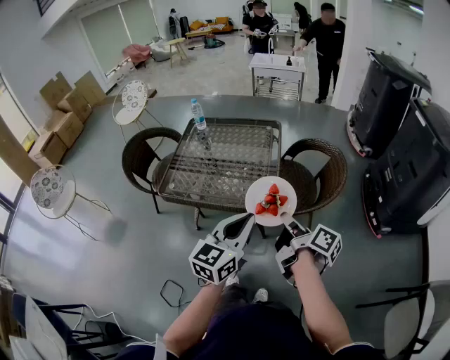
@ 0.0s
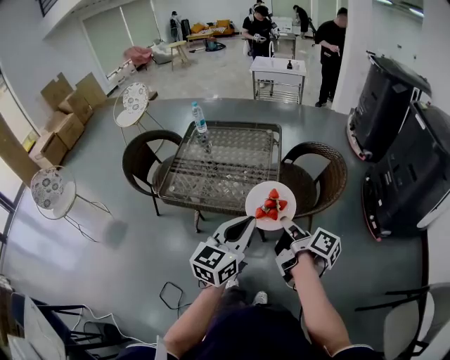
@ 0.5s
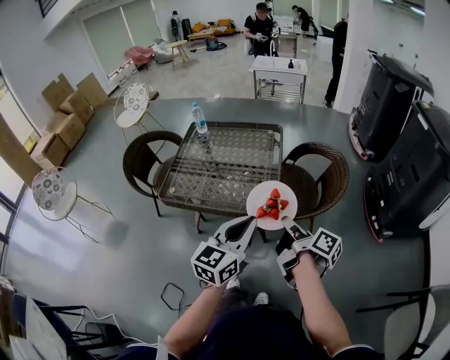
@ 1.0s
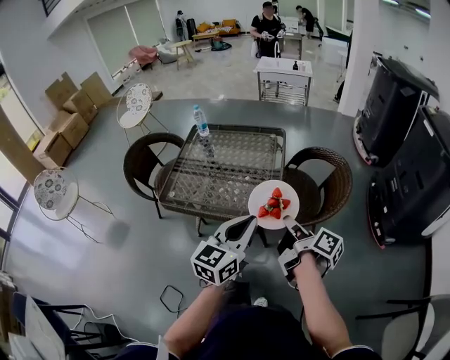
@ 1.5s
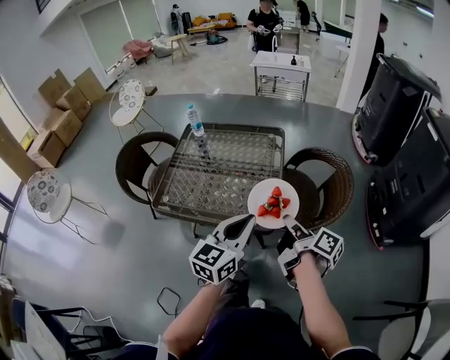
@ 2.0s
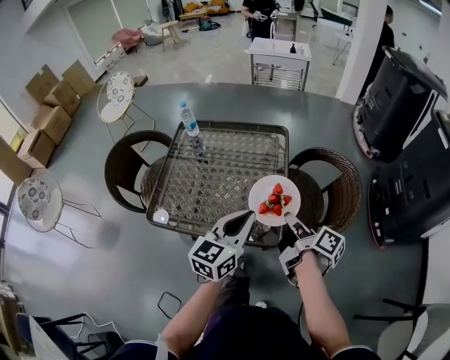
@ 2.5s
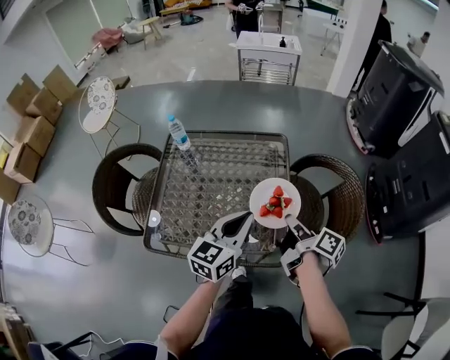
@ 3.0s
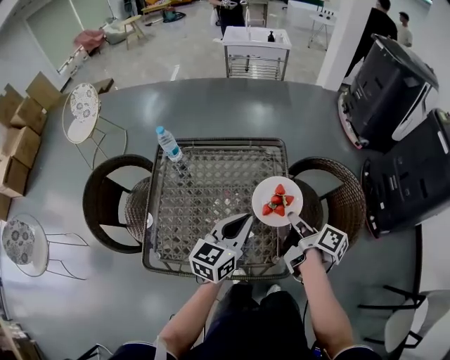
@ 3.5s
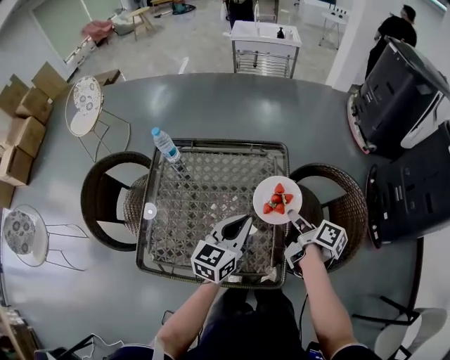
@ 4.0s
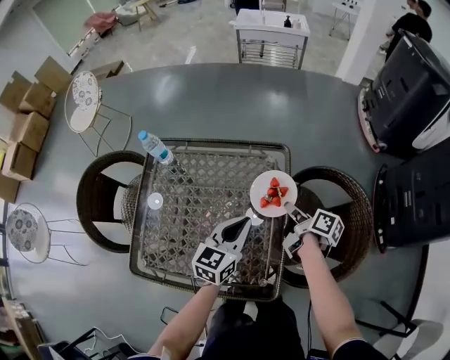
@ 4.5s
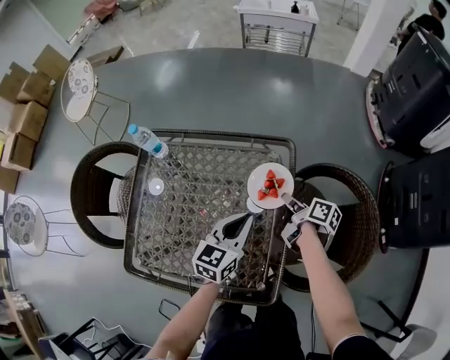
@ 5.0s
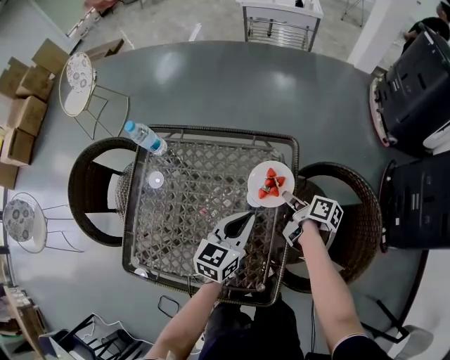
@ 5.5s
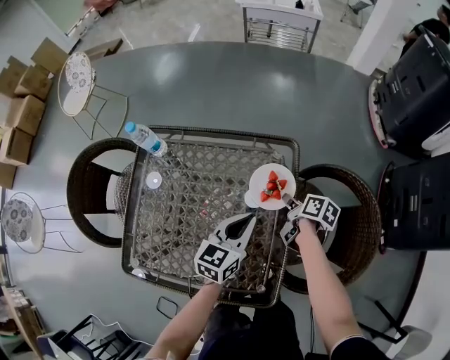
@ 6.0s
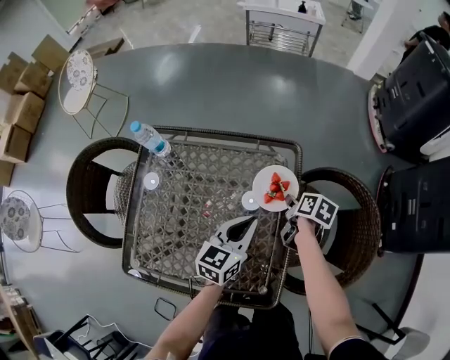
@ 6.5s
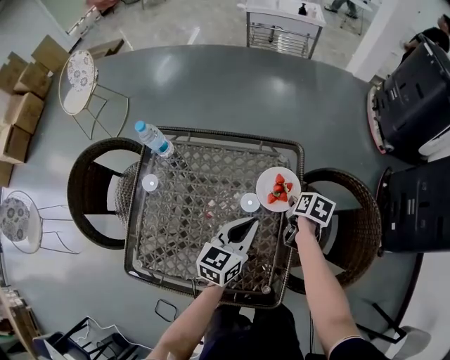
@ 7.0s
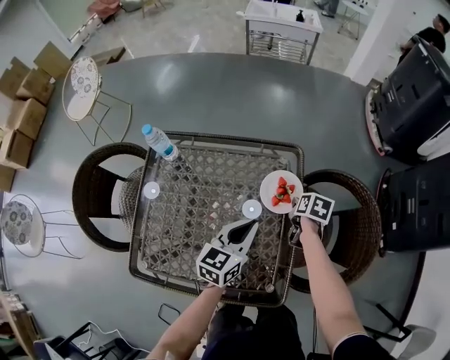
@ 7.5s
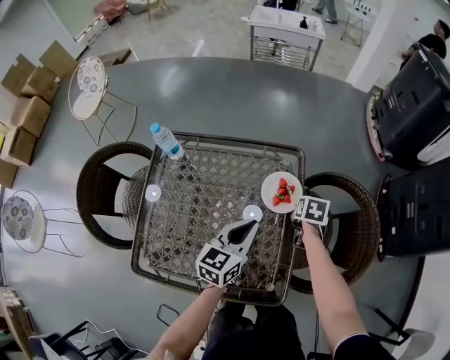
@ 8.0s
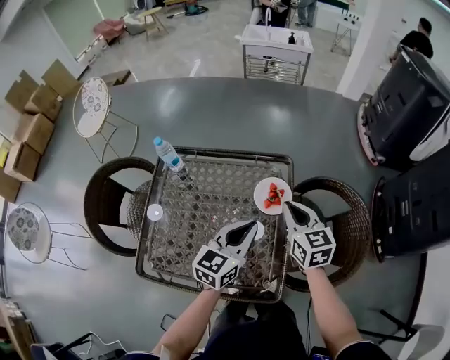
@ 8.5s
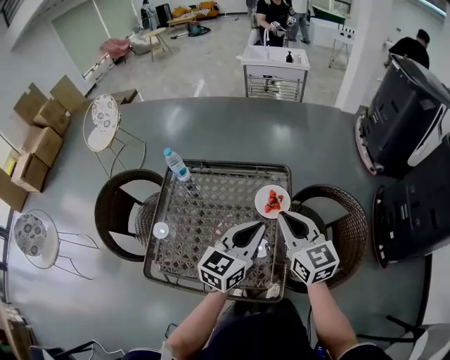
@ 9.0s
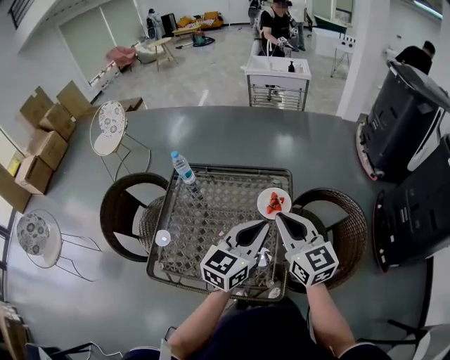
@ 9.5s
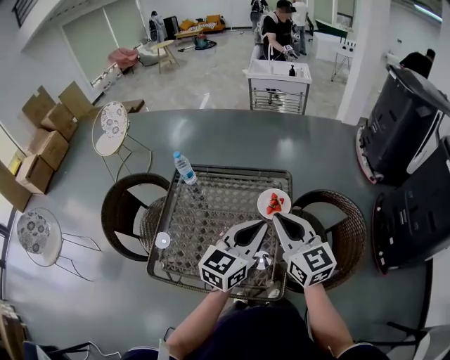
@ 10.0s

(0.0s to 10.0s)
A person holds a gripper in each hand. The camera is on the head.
0.0s - 2.0s: The grippers both shift forward by roughly 10 cm.
2.0s - 4.0s: The grippers both shift forward by roughly 30 cm.
4.0s - 6.0s: The right gripper goes about 20 cm downward and forward, and swivels about 30 degrees, while the left gripper is displaced downward and forward by some 10 cm.
6.0s - 8.0s: The left gripper moves roughly 5 cm. Meanwhile the right gripper swivels approximately 40 degrees.
8.0s - 10.0s: The right gripper heads upward and backward, covering roughly 35 cm, and angles its fingers upward, by roughly 60 degrees. Meanwhile the left gripper is displaced upward by approximately 20 cm.

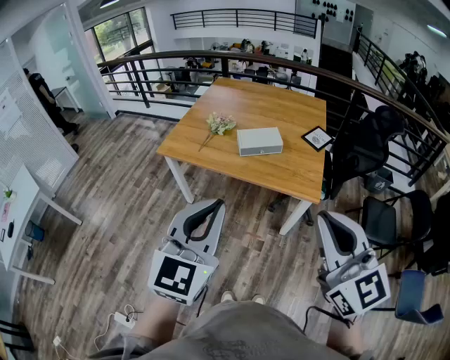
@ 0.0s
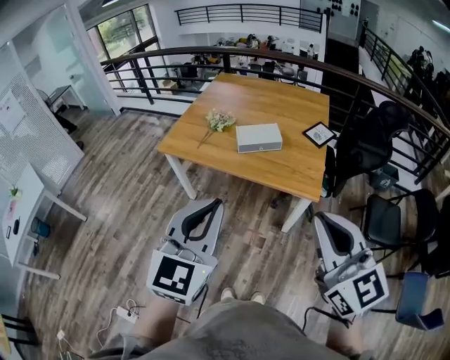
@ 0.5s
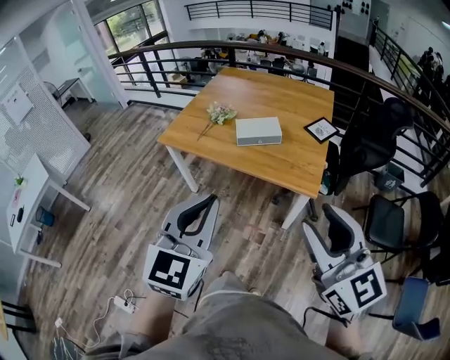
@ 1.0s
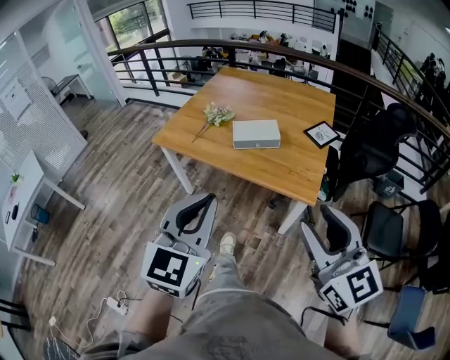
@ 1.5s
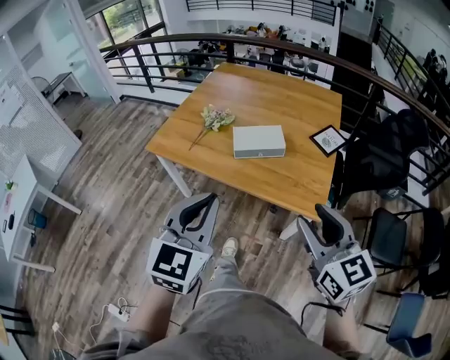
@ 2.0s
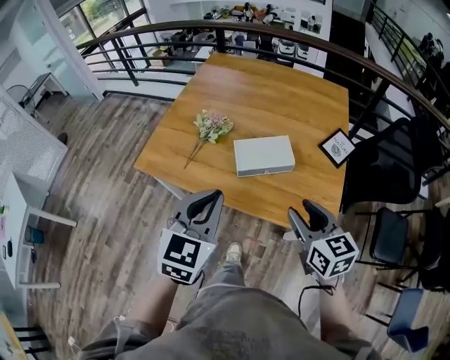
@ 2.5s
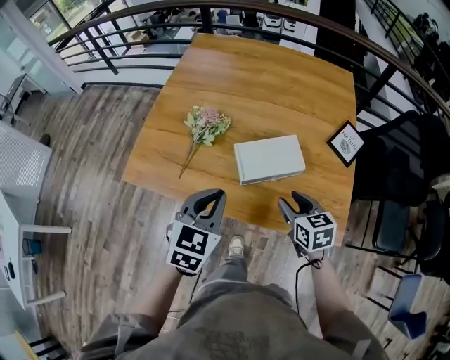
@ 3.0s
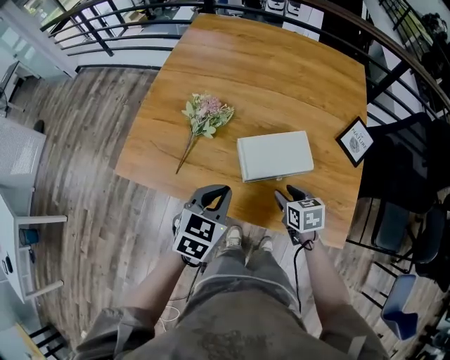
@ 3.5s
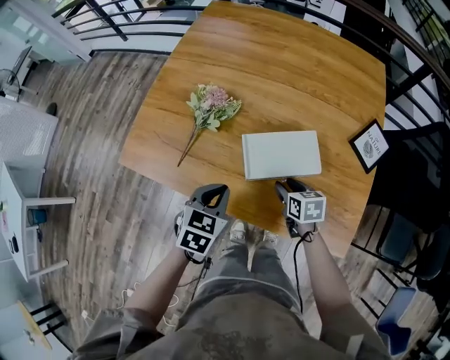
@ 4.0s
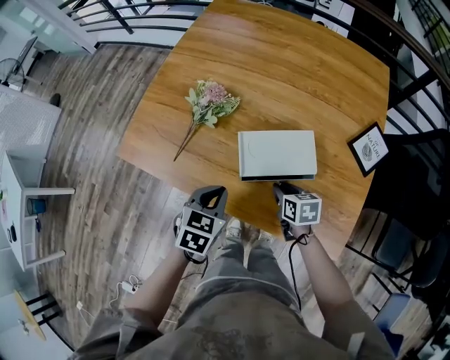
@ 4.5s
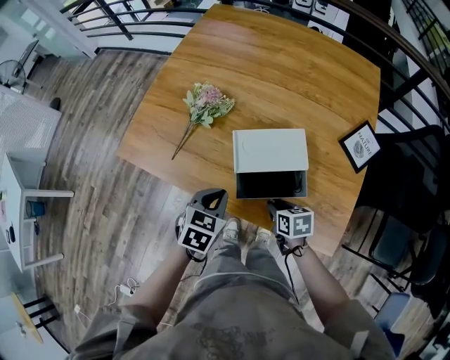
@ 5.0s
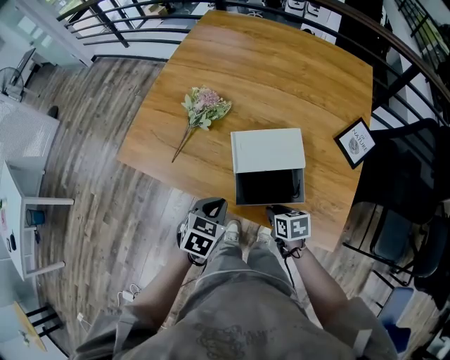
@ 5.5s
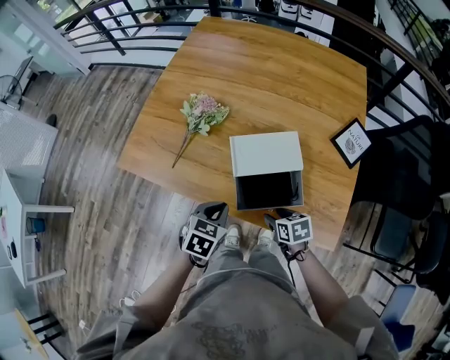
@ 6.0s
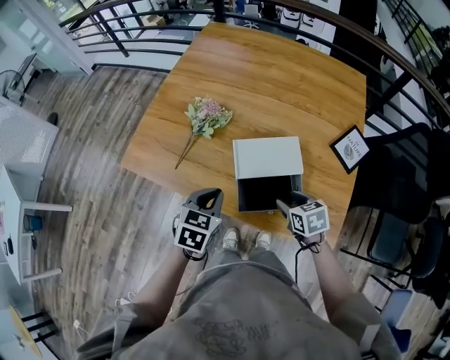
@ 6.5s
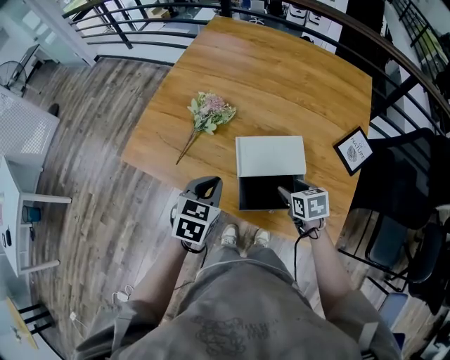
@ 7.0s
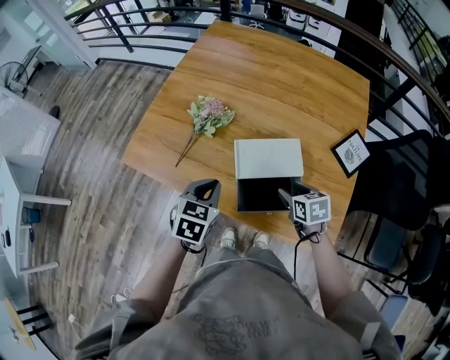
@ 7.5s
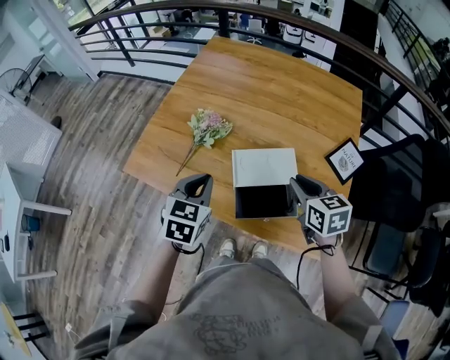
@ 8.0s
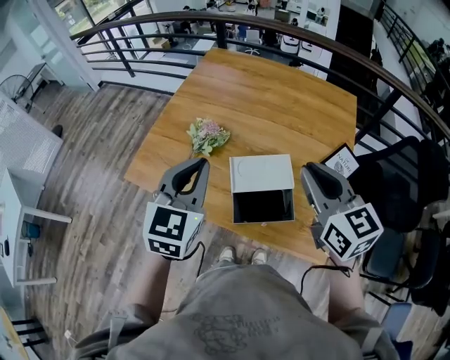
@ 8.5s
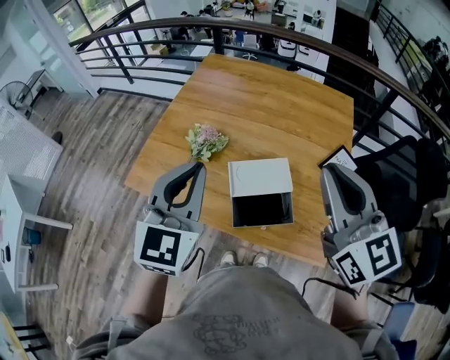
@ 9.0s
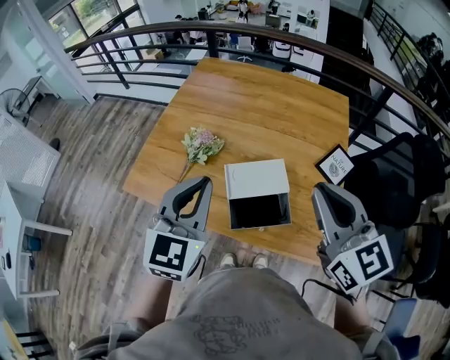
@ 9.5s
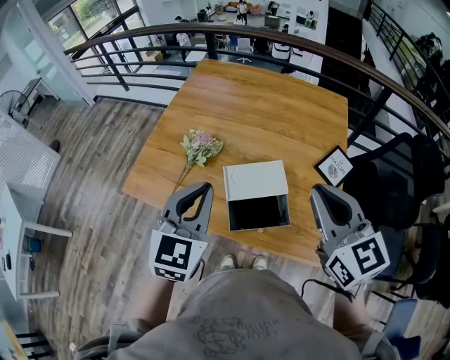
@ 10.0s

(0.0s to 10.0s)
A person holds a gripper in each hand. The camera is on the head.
0.0s - 2.0s: The left gripper moves forward and downward, roughly 15 cm. Meanwhile the right gripper is displaced forward, downward and to the right by some 25 cm, and opens its fingers.
2.0s - 4.0s: The left gripper is displaced forward and downward by roughly 40 cm, and angles its fingers downward, by approximately 40 degrees; the right gripper moves downward and forward, some 50 cm, and tips its fingers downward by roughly 40 degrees.
4.0s - 6.0s: The right gripper moves backward, about 10 cm, and closes and opens again; the left gripper shifts some 5 cm backward.
6.0s - 8.0s: The right gripper moves upward and forward, roughly 25 cm, swivels some 30 degrees, and closes its fingers, while the left gripper moves upward and forward, some 15 cm, and swivels approximately 20 degrees.
8.0s - 10.0s: Both grippers move upward, some 15 cm. The right gripper turns by about 30 degrees. The left gripper rotates about 20 degrees.

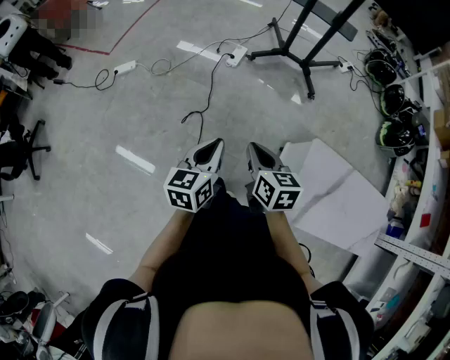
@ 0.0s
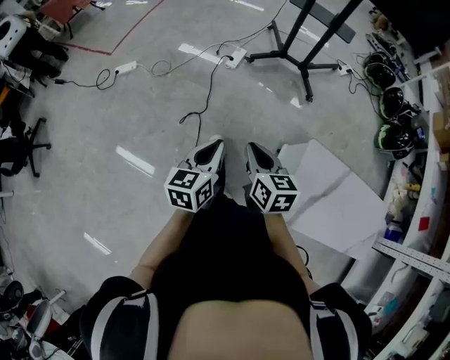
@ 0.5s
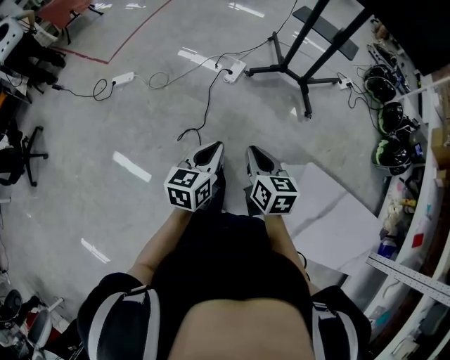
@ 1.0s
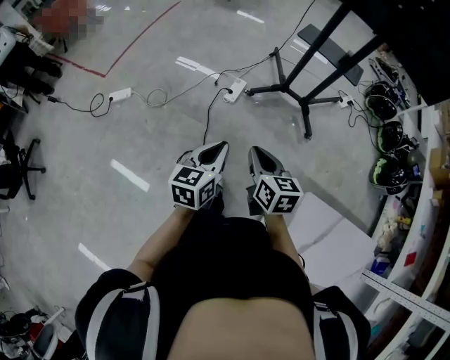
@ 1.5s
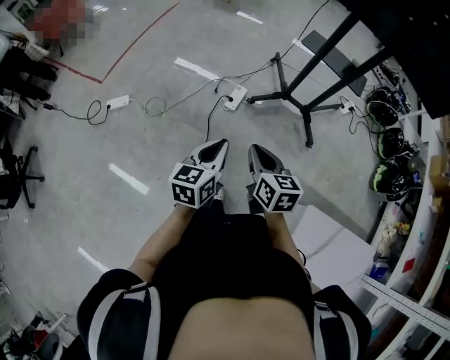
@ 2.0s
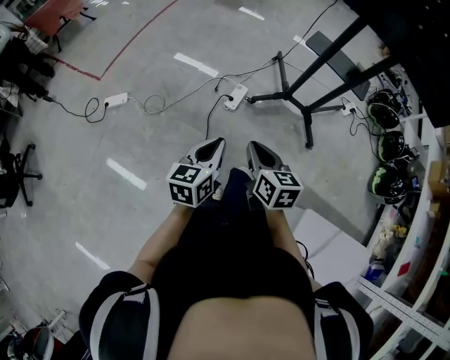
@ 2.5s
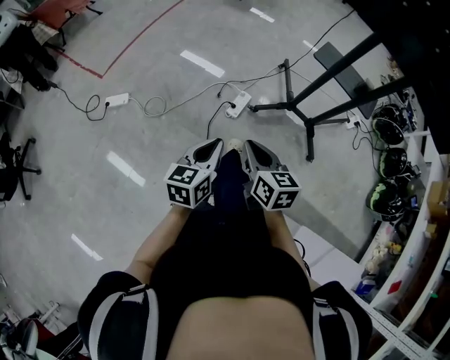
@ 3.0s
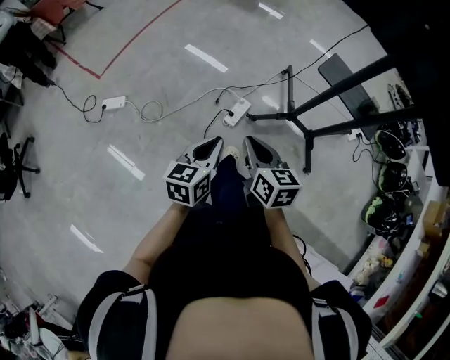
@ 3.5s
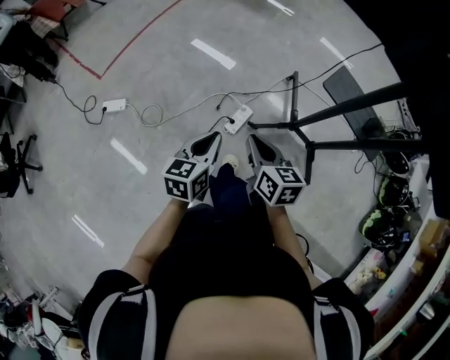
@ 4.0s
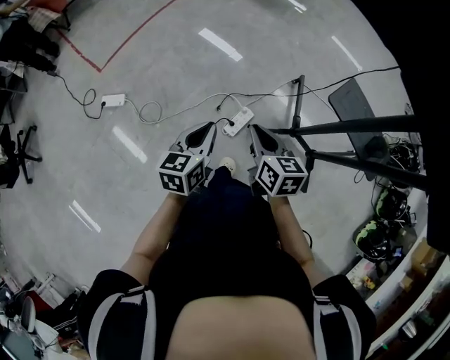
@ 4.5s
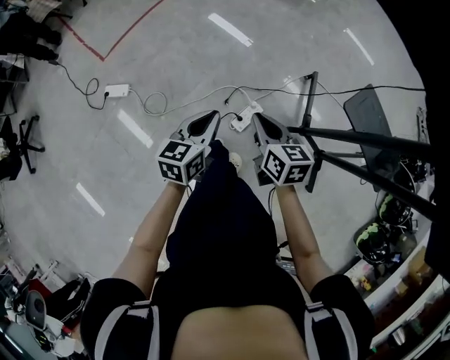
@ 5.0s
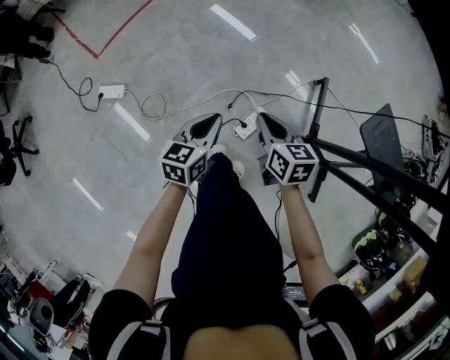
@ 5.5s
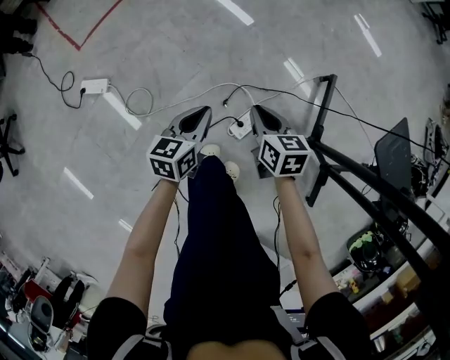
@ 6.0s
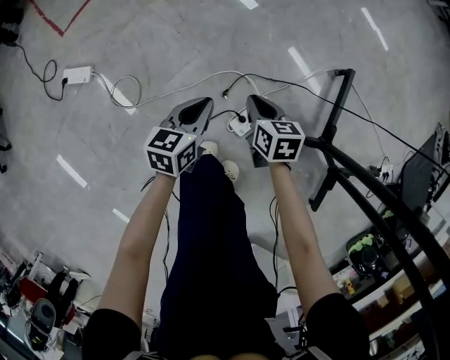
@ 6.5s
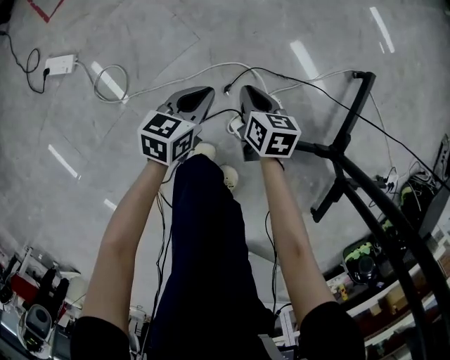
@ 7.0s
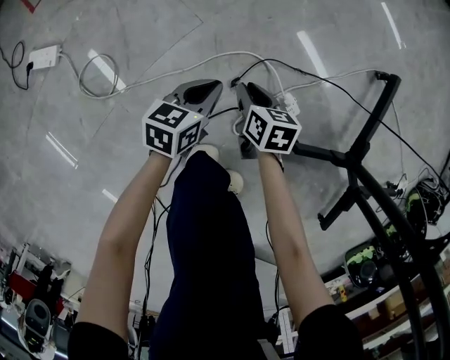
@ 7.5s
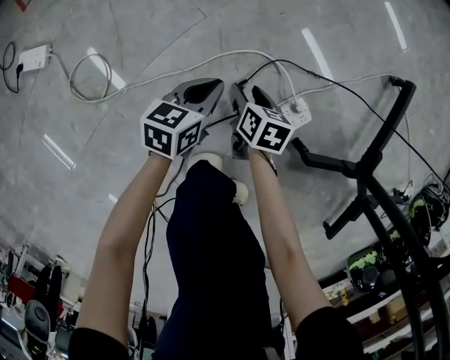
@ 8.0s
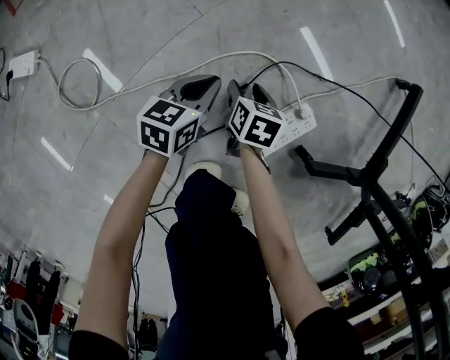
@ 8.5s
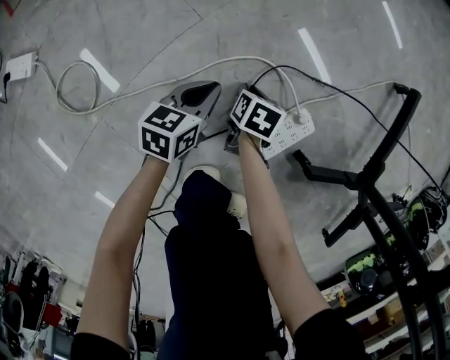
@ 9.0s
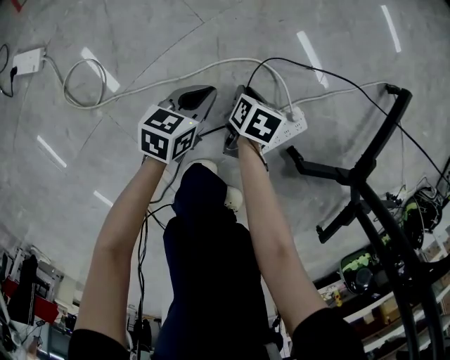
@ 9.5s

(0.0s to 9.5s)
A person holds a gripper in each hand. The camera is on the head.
0.0s - 2.0s: Both grippers move forward, about 35 cm.
2.0s - 4.0s: Both grippers travel together forward, about 35 cm.
4.0s - 5.5s: Both grippers travel together forward and downward, some 30 cm.
5.5s - 7.5s: The grippers both shift downward by some 50 cm.
7.5s - 9.5s: The grippers both shift downward by about 10 cm. The right gripper swivels some 20 degrees, and opens, then closes once more.
